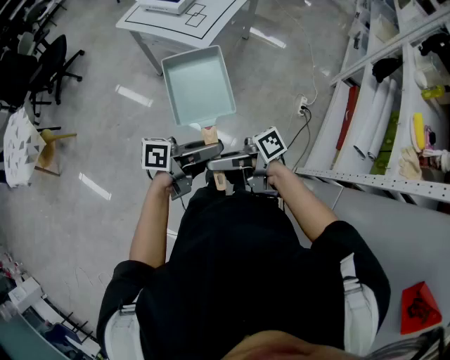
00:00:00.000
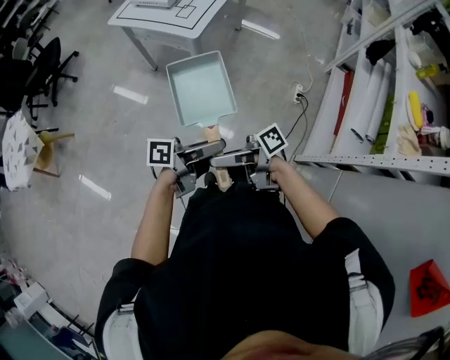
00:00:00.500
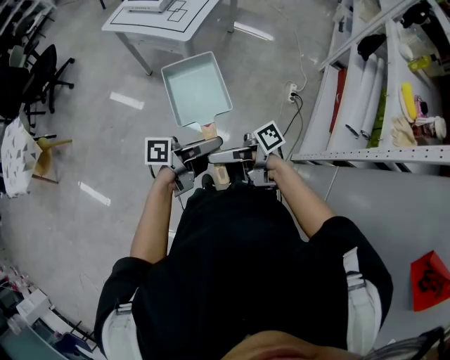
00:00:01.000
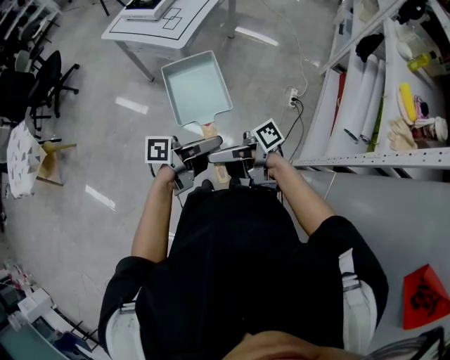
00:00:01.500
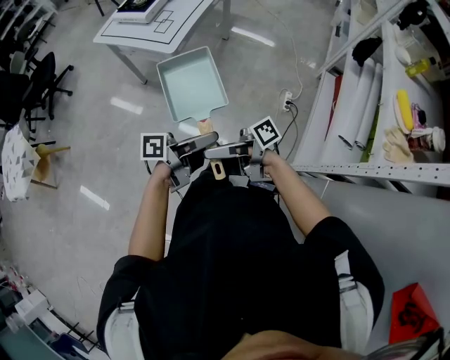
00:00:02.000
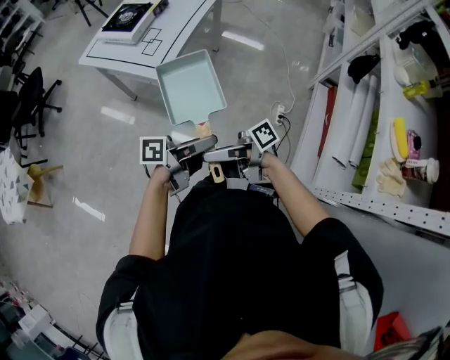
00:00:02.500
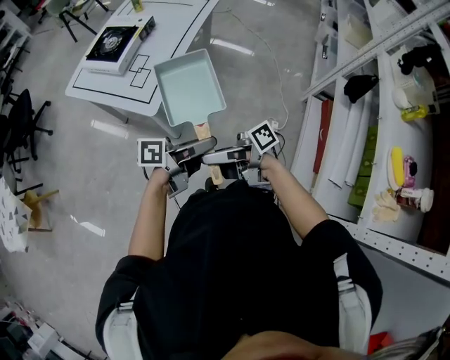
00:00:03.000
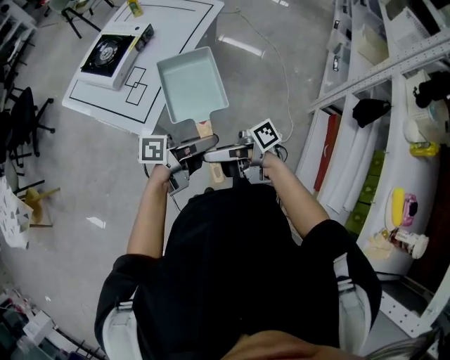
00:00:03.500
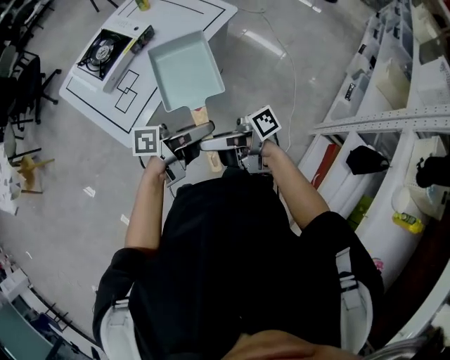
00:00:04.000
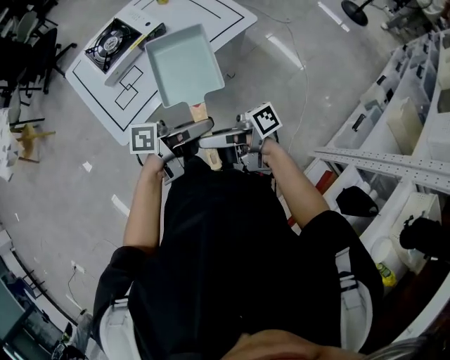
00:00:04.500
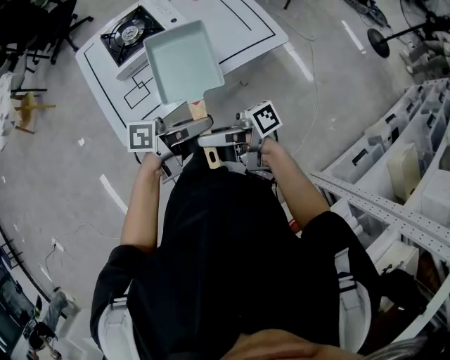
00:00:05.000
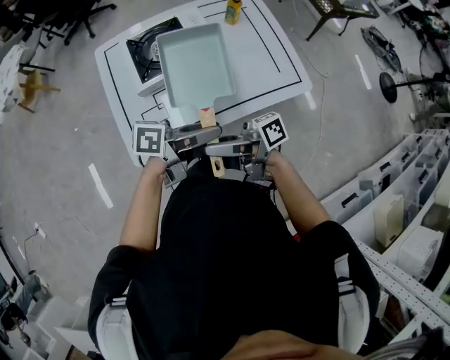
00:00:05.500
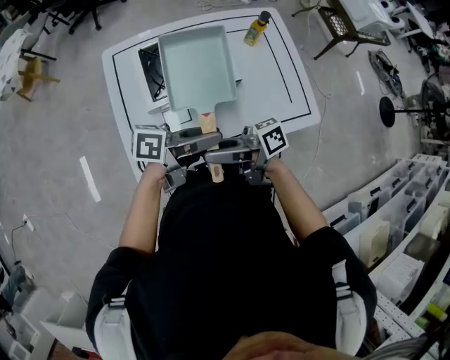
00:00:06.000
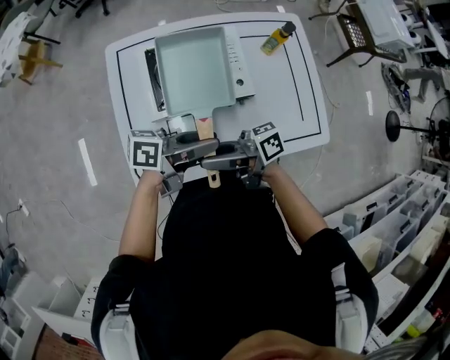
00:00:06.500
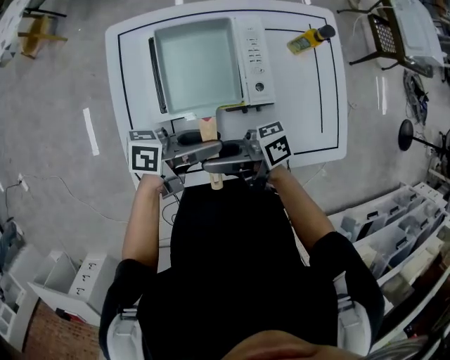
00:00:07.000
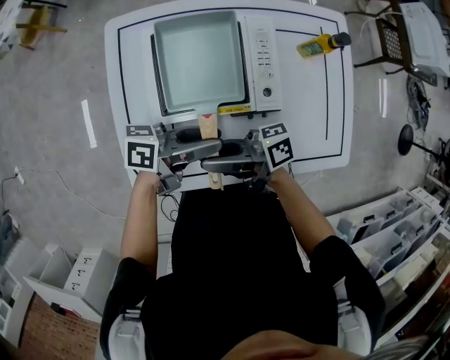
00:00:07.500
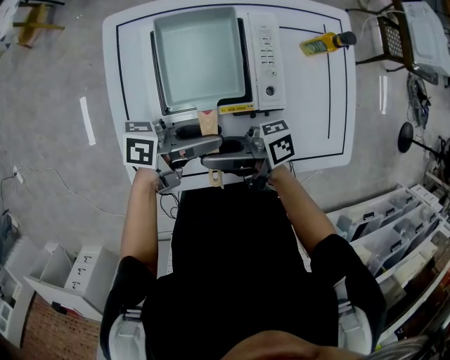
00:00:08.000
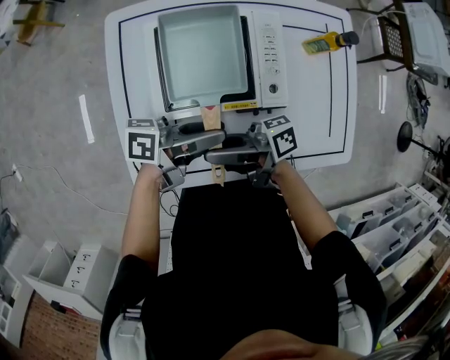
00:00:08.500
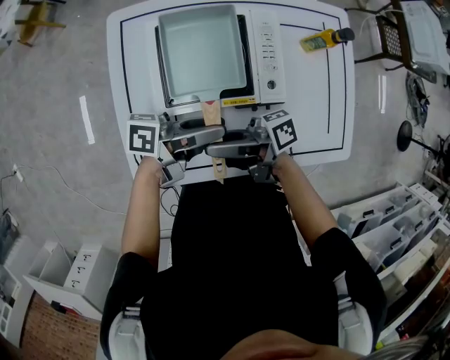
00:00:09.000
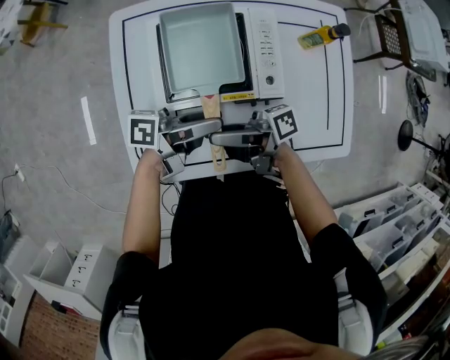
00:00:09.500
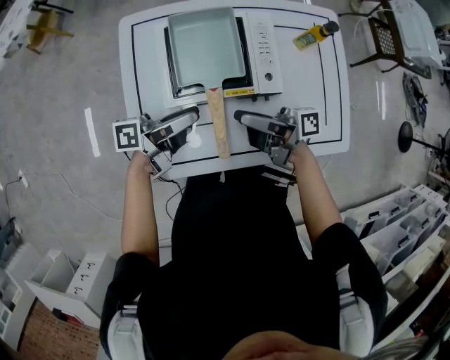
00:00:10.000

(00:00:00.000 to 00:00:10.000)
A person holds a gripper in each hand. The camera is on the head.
00:00:00.000 - 00:00:02.000: The right gripper shifts by roughly 15 cm, while the left gripper changes place by some 15 cm.
00:00:02.000 - 00:00:04.000: Both grippers are carried some 60 cm.
00:00:04.000 - 00:00:06.000: The left gripper moves about 35 cm, and rotates approximately 30 degrees. Meanwhile the right gripper changes place by roughly 35 cm, and changes its angle by approximately 30 degrees.
00:00:06.000 - 00:00:08.000: The right gripper shifts by roughly 15 cm. Meanwhile the left gripper moves about 15 cm.
00:00:08.000 - 00:00:10.000: The right gripper moves about 10 cm, while the left gripper shifts by some 5 cm.

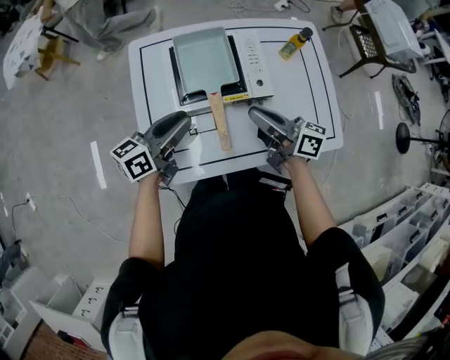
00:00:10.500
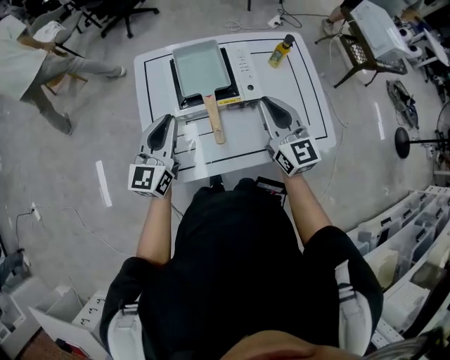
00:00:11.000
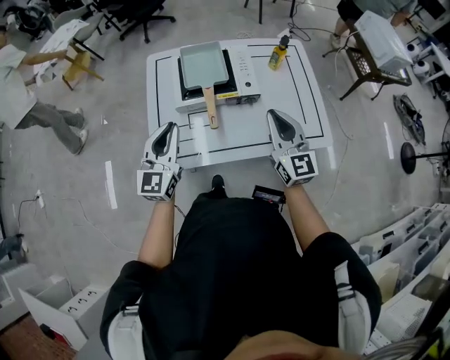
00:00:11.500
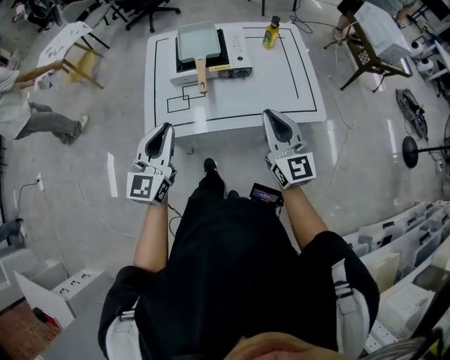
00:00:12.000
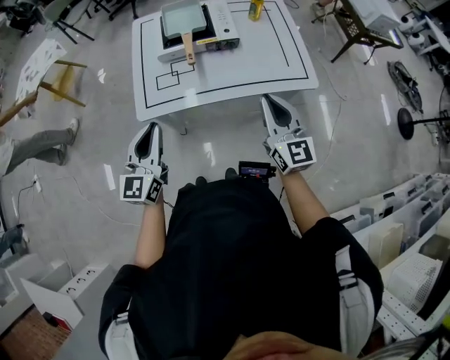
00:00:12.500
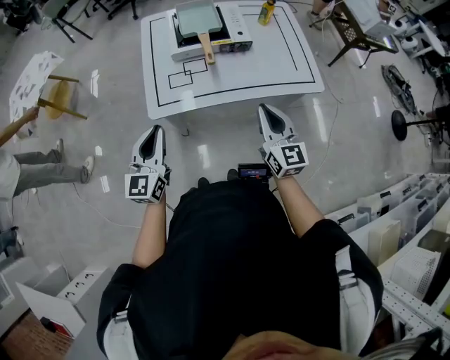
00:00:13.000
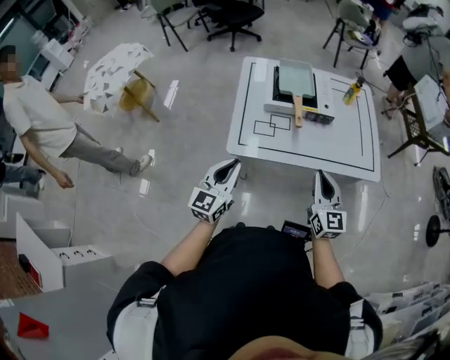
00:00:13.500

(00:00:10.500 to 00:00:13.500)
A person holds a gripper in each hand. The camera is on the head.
00:00:10.500 - 00:00:12.000: The left gripper moves backward and upward, about 30 cm, changes its angle by roughly 50 degrees, and closes up. The right gripper heads backward, to the right and upward, covering approximately 25 cm, and rolls counterclockwise, seen from behind, by some 60 degrees.
00:00:12.000 - 00:00:13.500: Both grippers travel together to the left, downward and backward, roughly 15 cm.

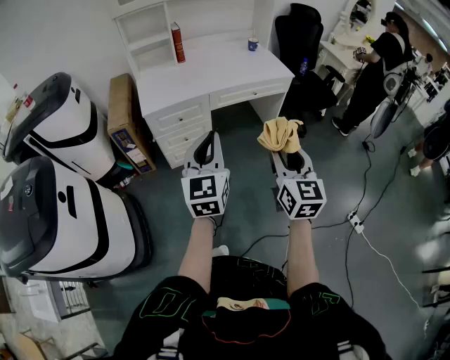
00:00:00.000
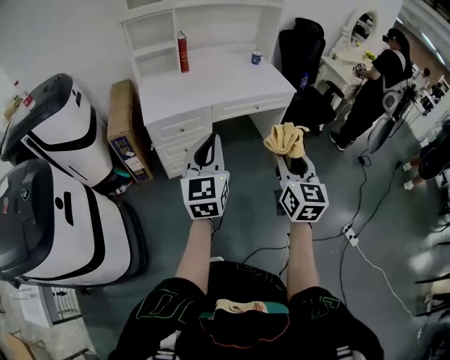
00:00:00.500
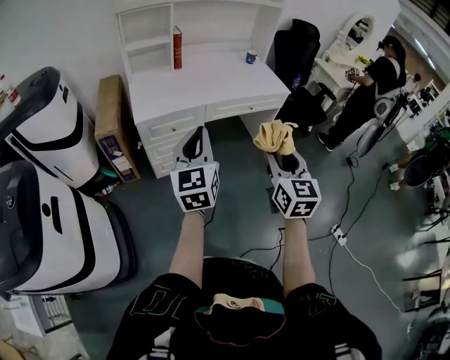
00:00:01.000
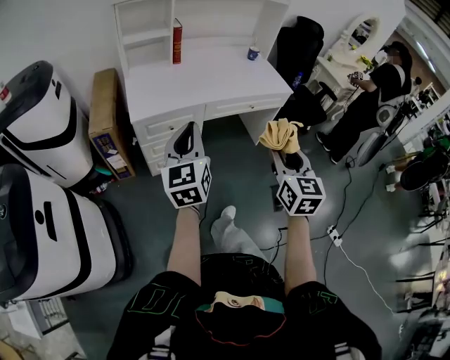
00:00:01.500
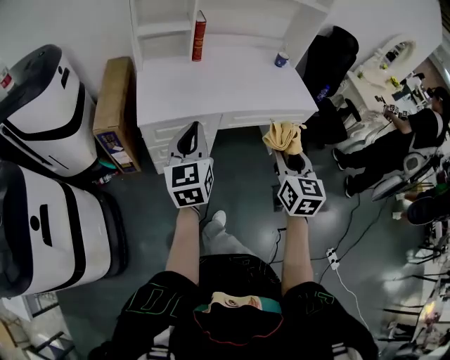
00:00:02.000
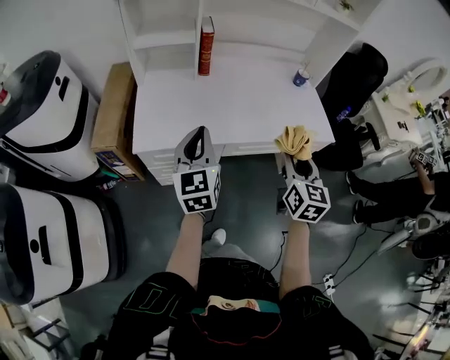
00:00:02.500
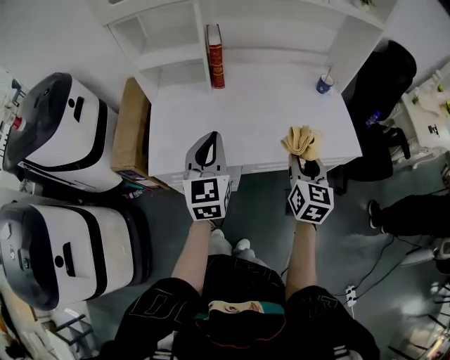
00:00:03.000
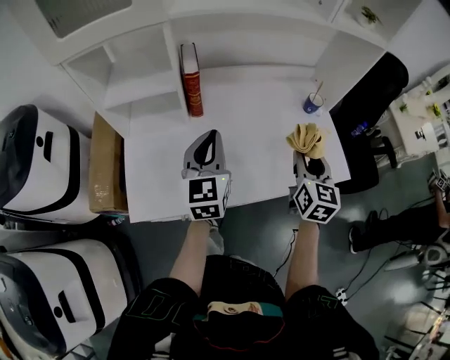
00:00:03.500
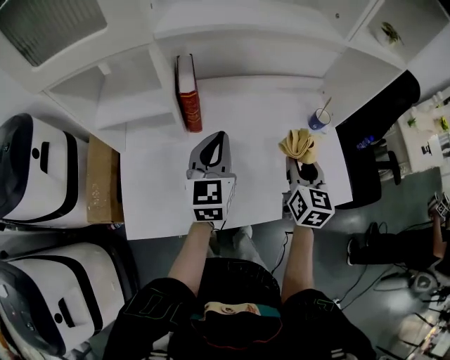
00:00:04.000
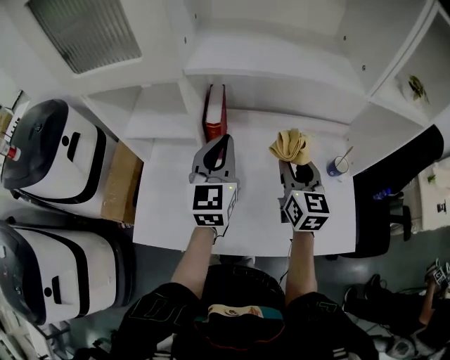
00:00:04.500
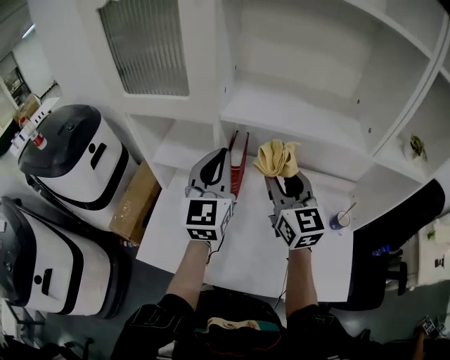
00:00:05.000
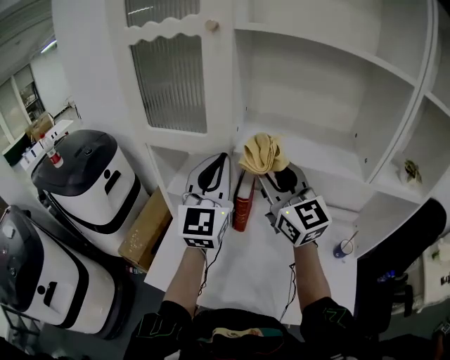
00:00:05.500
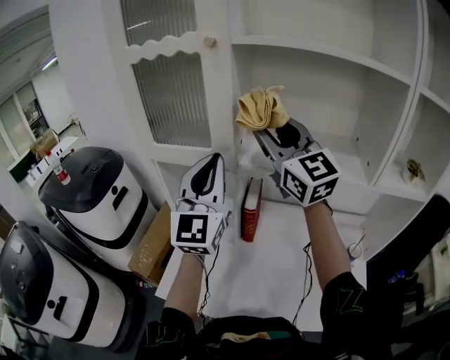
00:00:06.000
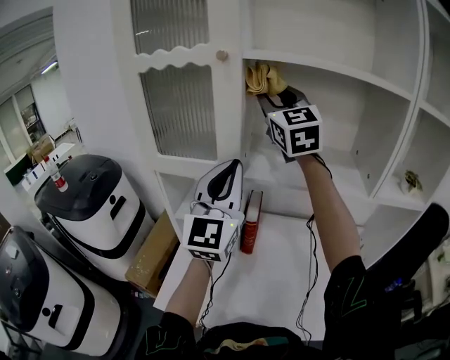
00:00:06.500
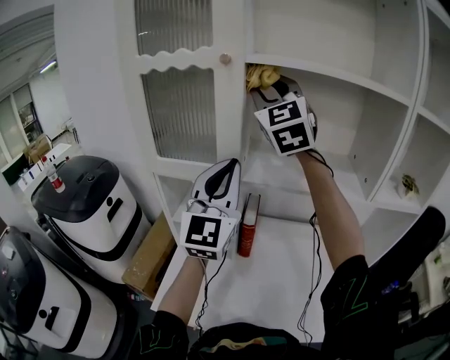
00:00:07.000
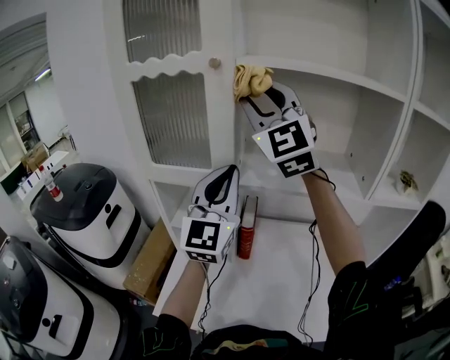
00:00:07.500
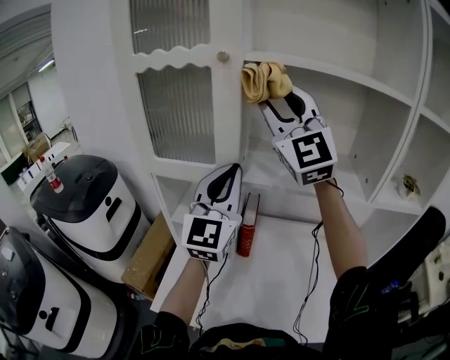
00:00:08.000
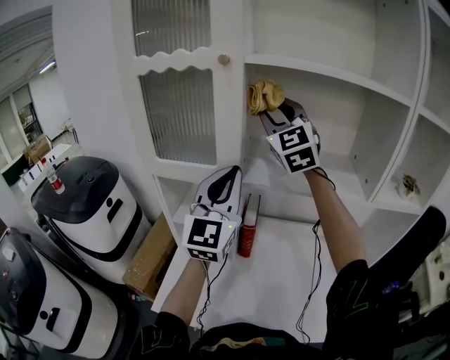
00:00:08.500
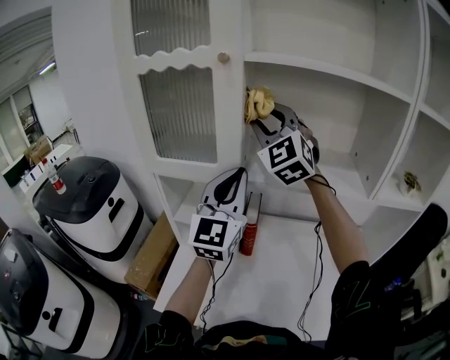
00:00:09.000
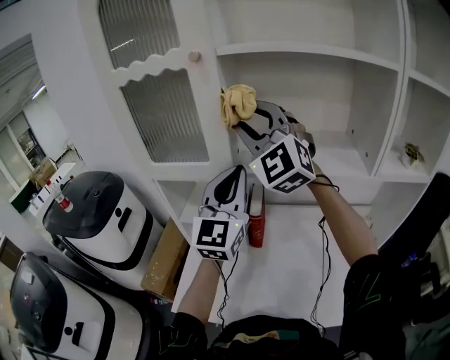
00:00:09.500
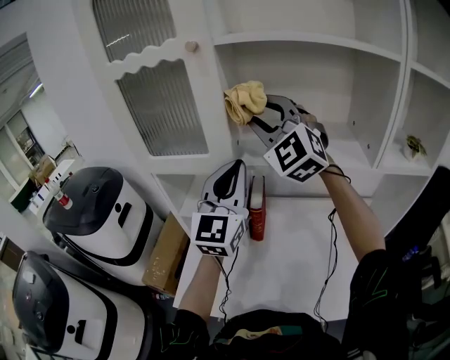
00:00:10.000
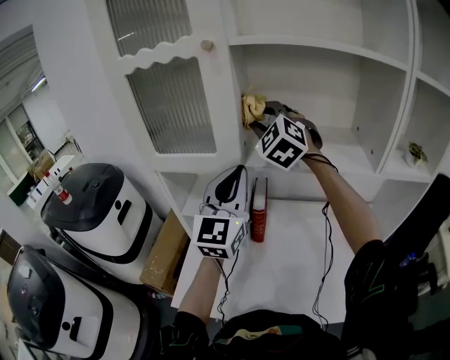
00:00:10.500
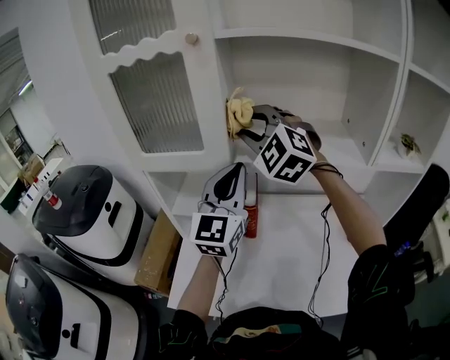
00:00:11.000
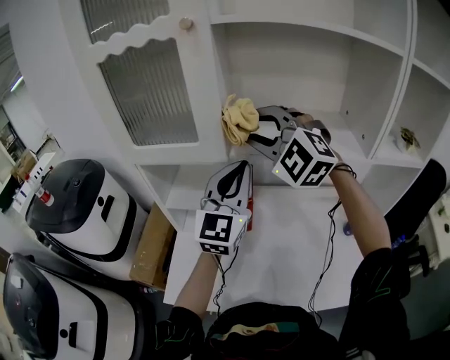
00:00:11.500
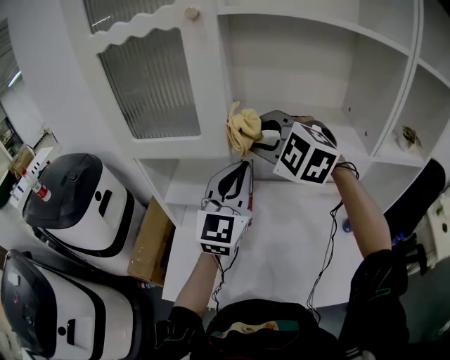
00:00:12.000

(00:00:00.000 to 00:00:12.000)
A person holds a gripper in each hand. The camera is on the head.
00:00:00.000 - 00:00:02.000: The right gripper shifts about 25 cm forward, while the left gripper moves forward and to the left, some 25 cm.
00:00:02.000 - 00:00:04.000: The two grippers travel together, forward, about 50 cm.
00:00:04.000 - 00:00:06.000: The two grippers go some 35 cm upward. The right gripper tips its fingers upward by about 30 degrees. The left gripper angles its fingers upward, by roughly 30 degrees.
00:00:06.000 - 00:00:08.000: The right gripper shifts roughly 10 cm upward, and rotates approximately 30 degrees.
00:00:08.000 - 00:00:10.000: The right gripper travels downward by approximately 10 cm, and swivels some 20 degrees.
00:00:10.000 - 00:00:12.000: The left gripper heads downward, covering about 5 cm. Meanwhile the right gripper shifts some 10 cm downward, and tilts its fingers roughly 30 degrees downward.

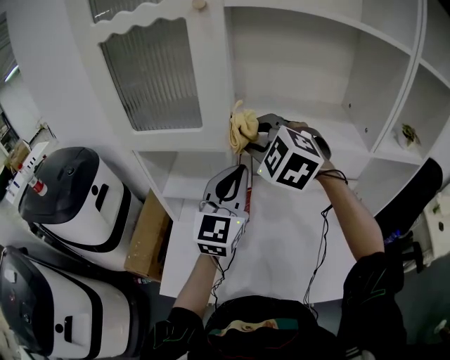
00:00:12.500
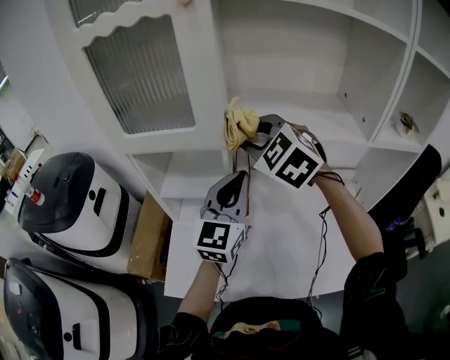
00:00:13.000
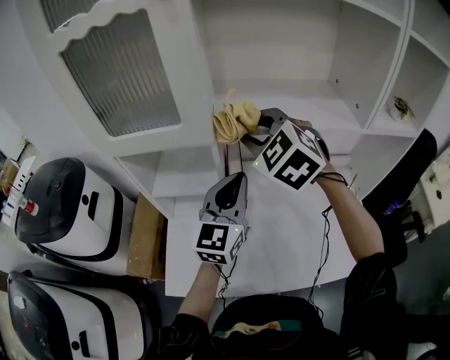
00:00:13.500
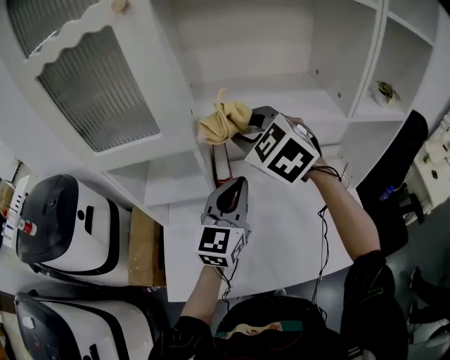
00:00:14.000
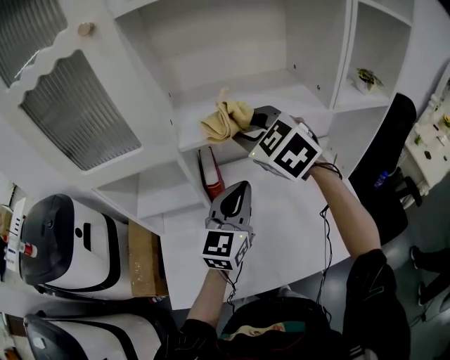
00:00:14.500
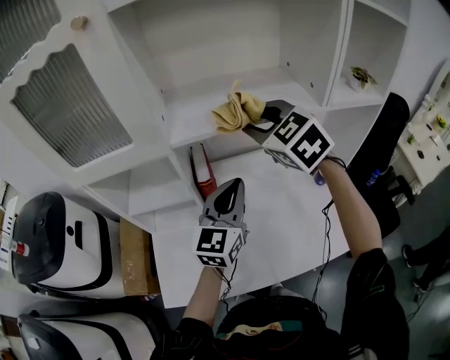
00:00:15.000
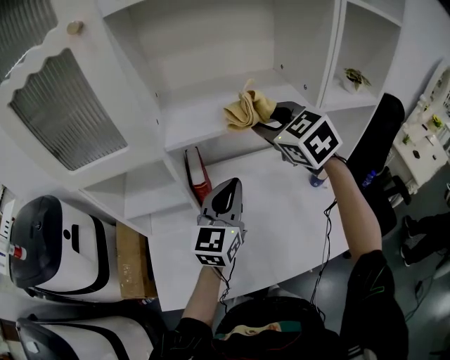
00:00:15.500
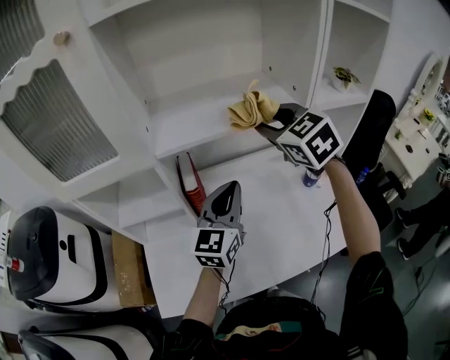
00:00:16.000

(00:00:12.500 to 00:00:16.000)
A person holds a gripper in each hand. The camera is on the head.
00:00:12.500 - 00:00:14.500: The left gripper goes approximately 10 cm to the right and downward, and turns by approximately 20 degrees, while the right gripper shifts roughly 10 cm to the right, and turns by roughly 30 degrees.
00:00:14.500 - 00:00:16.000: The right gripper shifts approximately 10 cm to the right.
